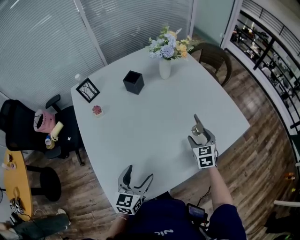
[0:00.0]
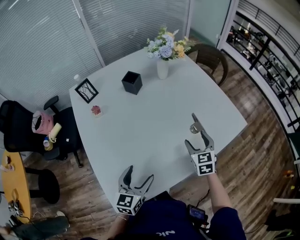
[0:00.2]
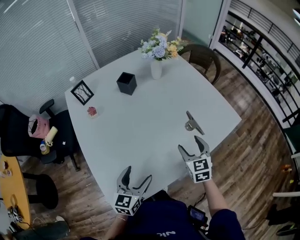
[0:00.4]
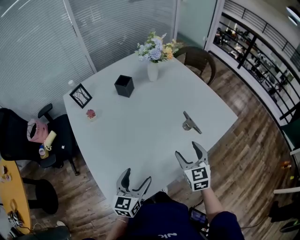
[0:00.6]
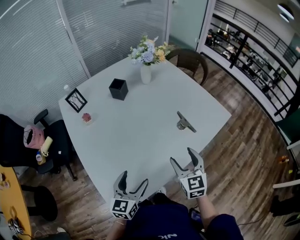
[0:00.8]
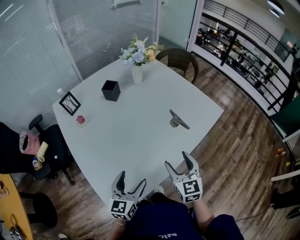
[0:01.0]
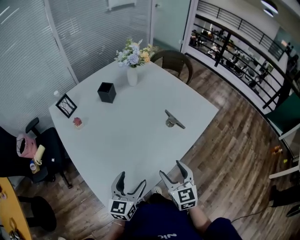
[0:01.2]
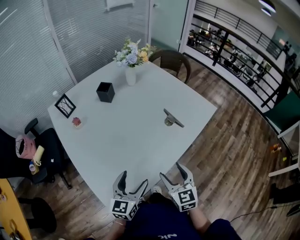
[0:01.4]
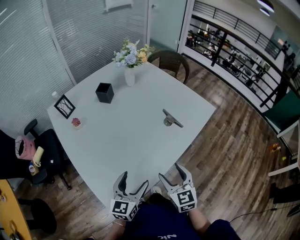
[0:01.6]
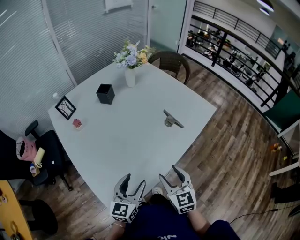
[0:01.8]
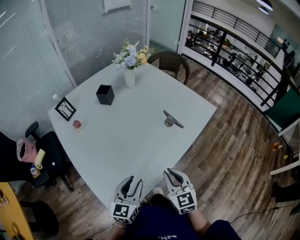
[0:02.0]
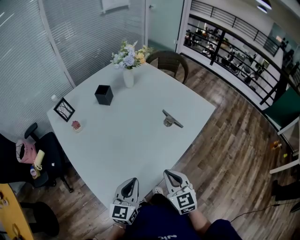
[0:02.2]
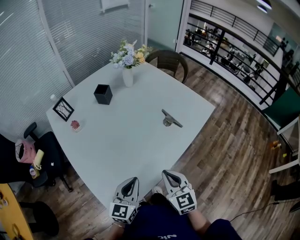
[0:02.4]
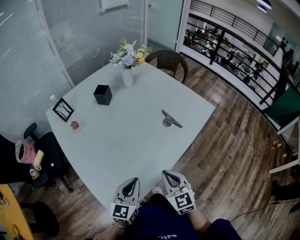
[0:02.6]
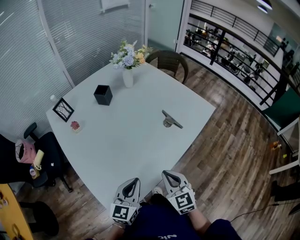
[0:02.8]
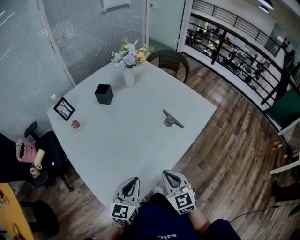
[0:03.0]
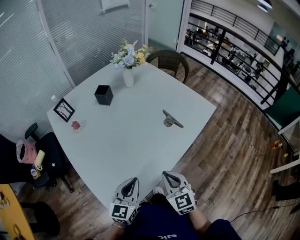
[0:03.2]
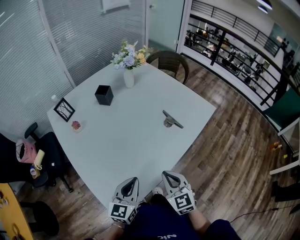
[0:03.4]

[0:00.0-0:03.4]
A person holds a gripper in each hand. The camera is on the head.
0:00.0 to 0:01.6: The left gripper heads backward, covering some 10 cm, while the right gripper moves backward, some 25 cm.
0:01.6 to 0:03.4: The right gripper closes up. Meanwhile the left gripper closes.

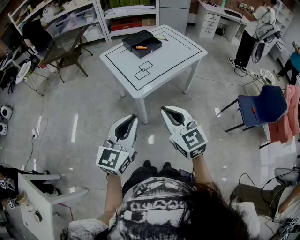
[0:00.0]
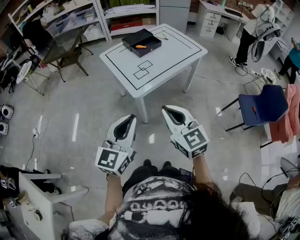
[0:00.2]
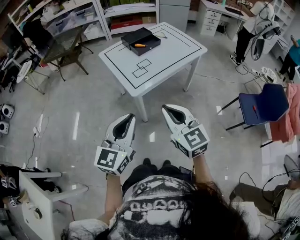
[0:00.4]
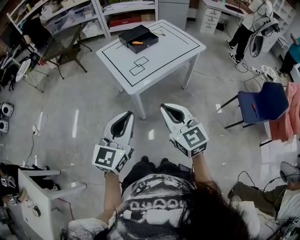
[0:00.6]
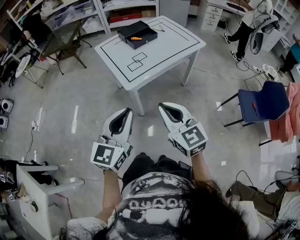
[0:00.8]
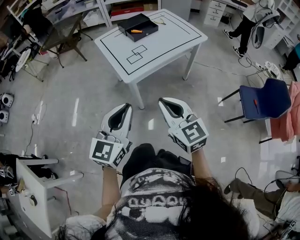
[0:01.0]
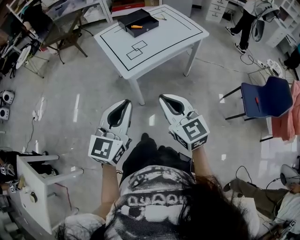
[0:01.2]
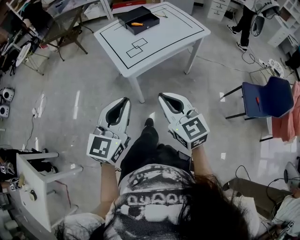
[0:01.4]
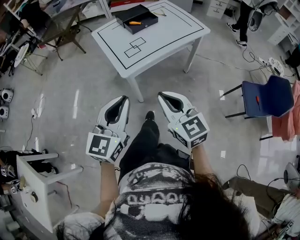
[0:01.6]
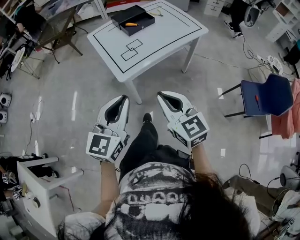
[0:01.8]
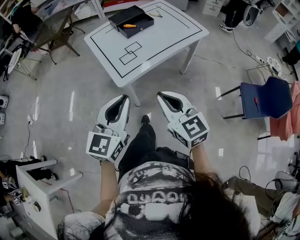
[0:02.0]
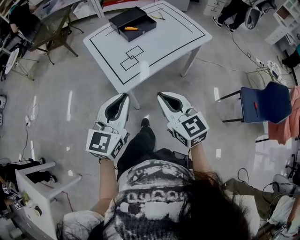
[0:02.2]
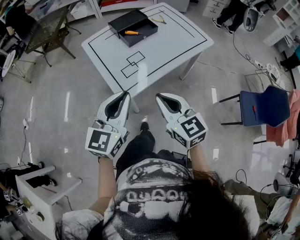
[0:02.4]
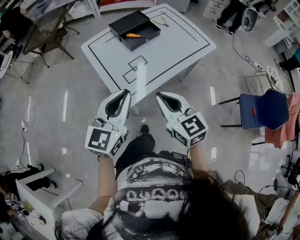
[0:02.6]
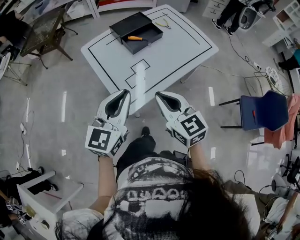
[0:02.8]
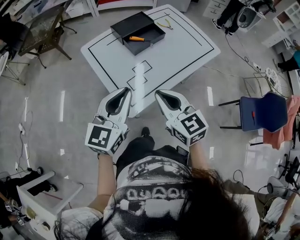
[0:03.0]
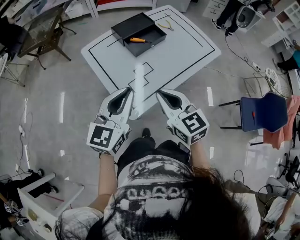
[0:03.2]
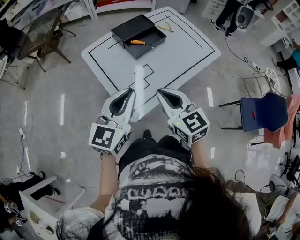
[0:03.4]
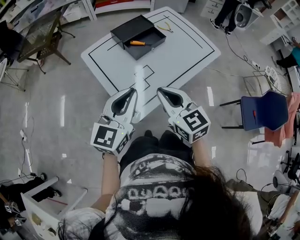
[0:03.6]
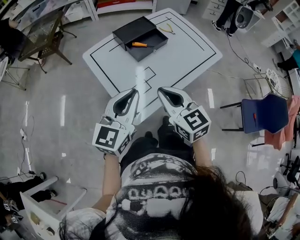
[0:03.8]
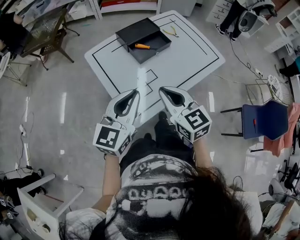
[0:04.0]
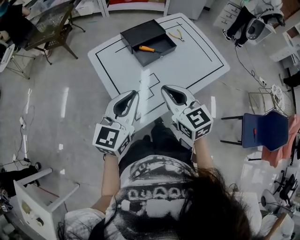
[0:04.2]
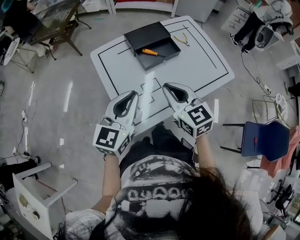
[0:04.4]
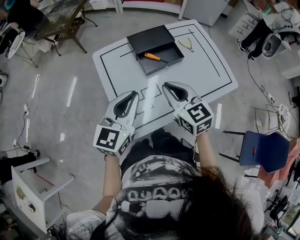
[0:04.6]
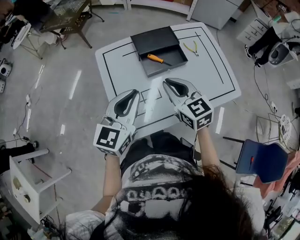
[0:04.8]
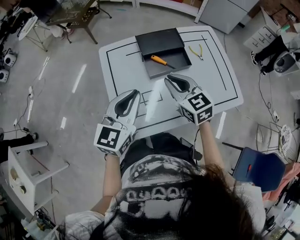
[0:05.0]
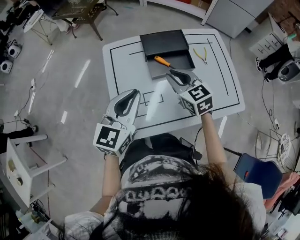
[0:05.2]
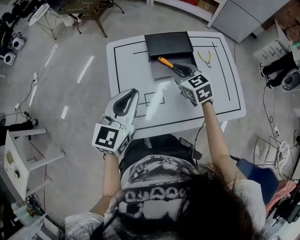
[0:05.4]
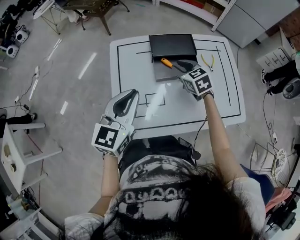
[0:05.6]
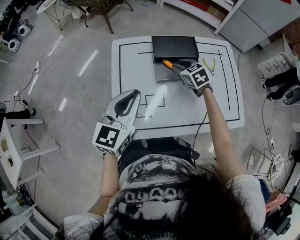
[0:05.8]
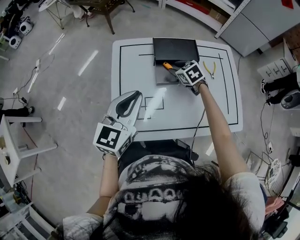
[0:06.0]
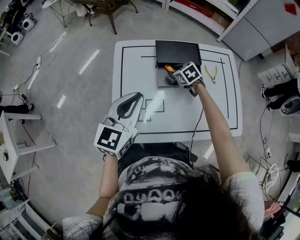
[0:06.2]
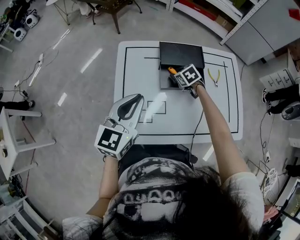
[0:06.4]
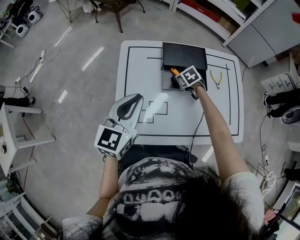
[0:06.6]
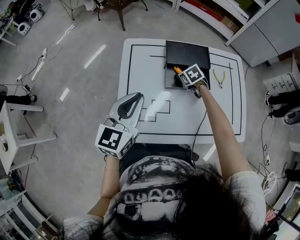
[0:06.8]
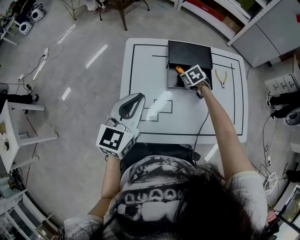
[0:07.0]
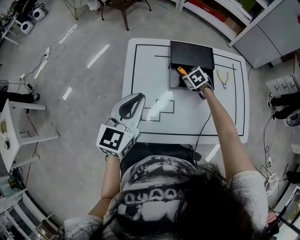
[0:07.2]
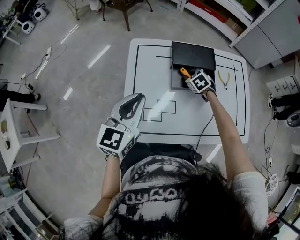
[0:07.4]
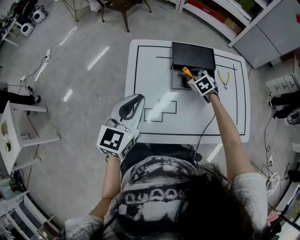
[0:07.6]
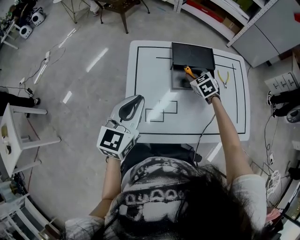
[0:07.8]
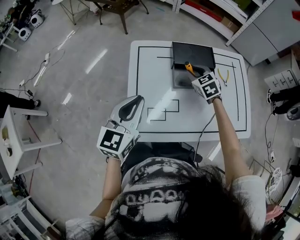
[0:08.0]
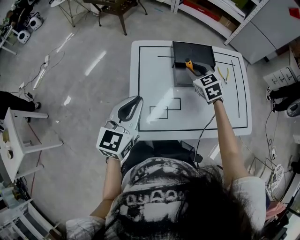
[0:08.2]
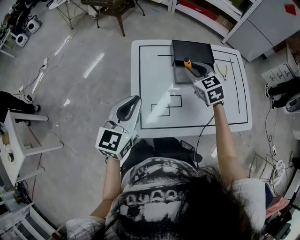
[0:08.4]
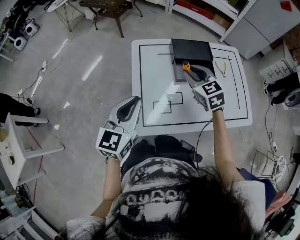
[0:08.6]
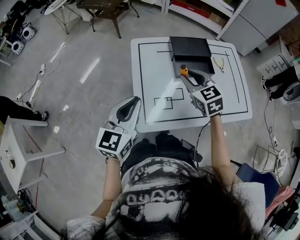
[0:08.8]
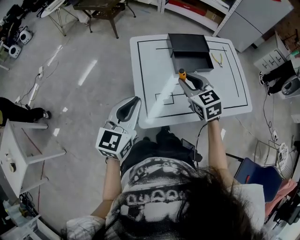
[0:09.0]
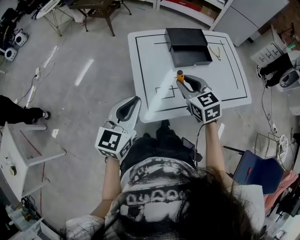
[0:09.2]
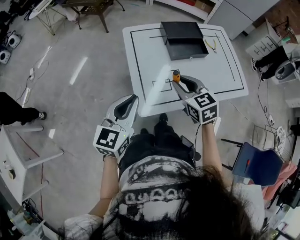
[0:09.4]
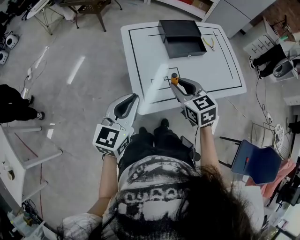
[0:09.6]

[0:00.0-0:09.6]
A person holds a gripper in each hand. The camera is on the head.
0:00.0 to 0:01.6: The left gripper travels to the right by roughly 10 cm. The right gripper goes some 10 cm to the right and downward.
0:01.6 to 0:03.2: The two grippers go about 35 cm forward.
0:03.2 to 0:04.8: The grippers both shift forward by some 20 cm.
0:04.8 to 0:06.4: The right gripper moves downward and forward, about 30 cm, tips its fingers downward by roughly 40 degrees, and opens up.
0:06.4 to 0:08.0: The left gripper is displaced to the left by approximately 5 cm. Meanwhile the right gripper goes about 10 cm upward, and turns by roughly 20 degrees.
0:08.0 to 0:09.6: The left gripper goes approximately 20 cm backward and to the left; the right gripper shifts approximately 30 cm backward and to the left, and turns by about 20 degrees.

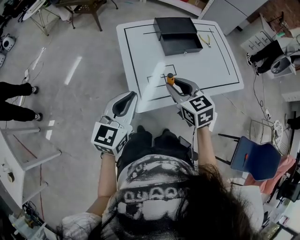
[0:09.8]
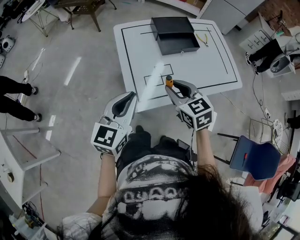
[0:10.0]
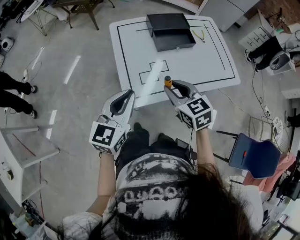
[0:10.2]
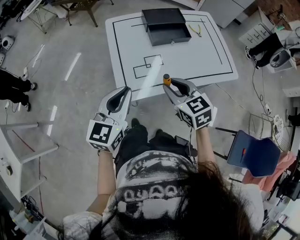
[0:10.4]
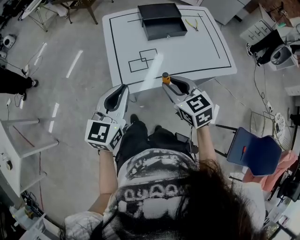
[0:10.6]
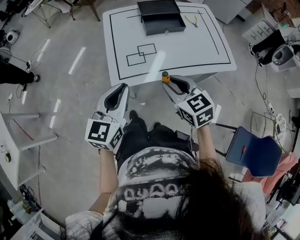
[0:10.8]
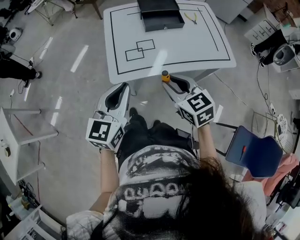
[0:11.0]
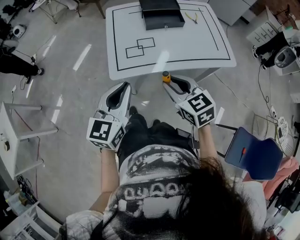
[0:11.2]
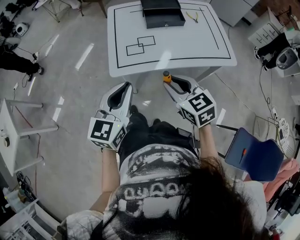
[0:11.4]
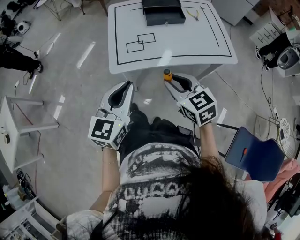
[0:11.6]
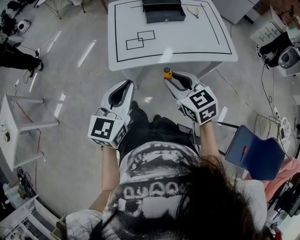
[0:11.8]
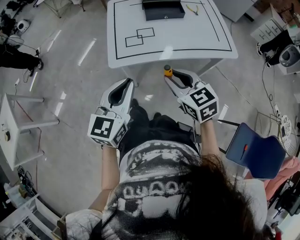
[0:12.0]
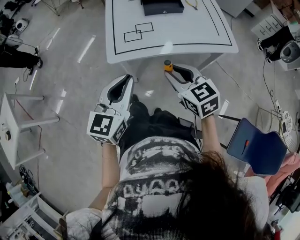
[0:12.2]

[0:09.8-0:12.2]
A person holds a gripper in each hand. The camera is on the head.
0:09.8 to 0:11.0: The grippers both shift backward and to the right by roughly 20 cm.
0:11.0 to 0:12.2: The grippers both shift backward by about 10 cm.

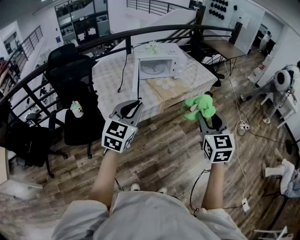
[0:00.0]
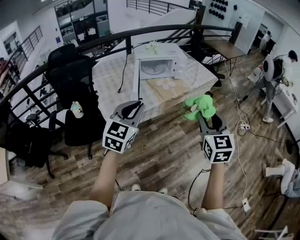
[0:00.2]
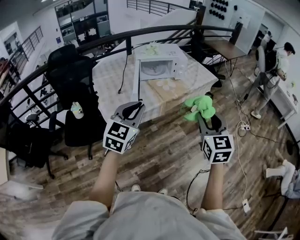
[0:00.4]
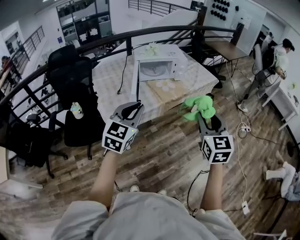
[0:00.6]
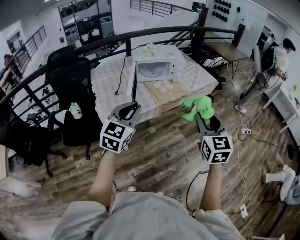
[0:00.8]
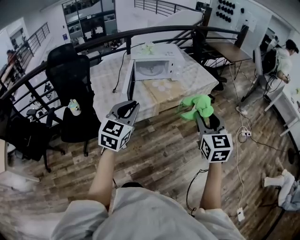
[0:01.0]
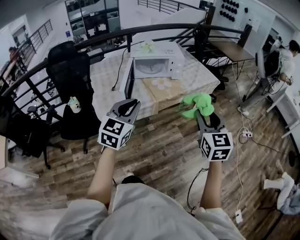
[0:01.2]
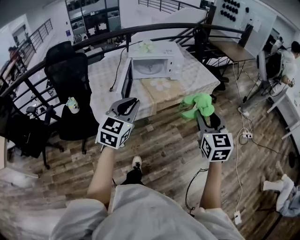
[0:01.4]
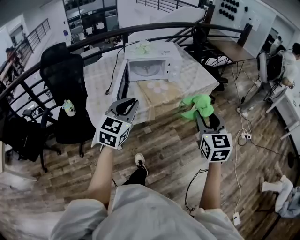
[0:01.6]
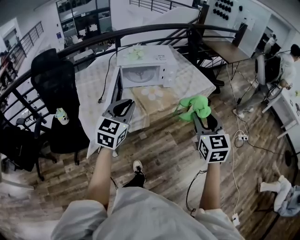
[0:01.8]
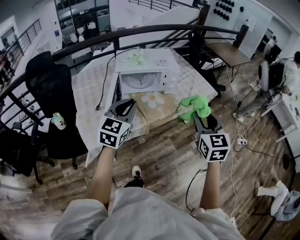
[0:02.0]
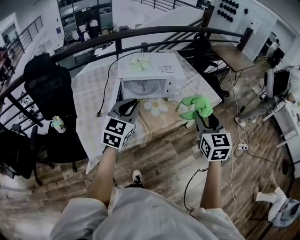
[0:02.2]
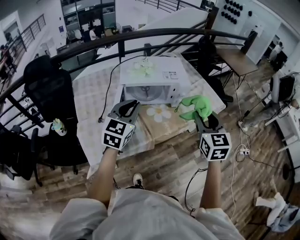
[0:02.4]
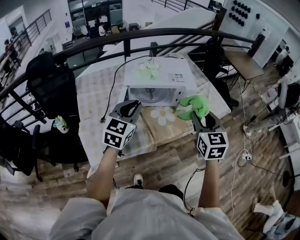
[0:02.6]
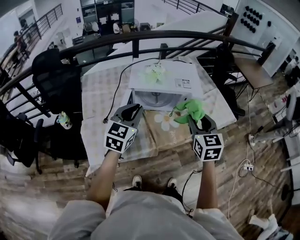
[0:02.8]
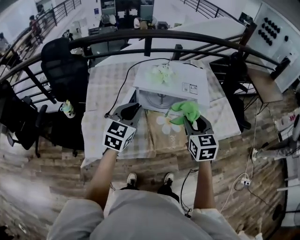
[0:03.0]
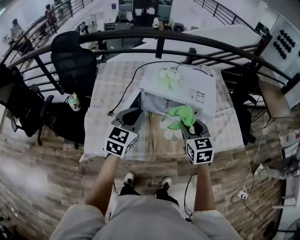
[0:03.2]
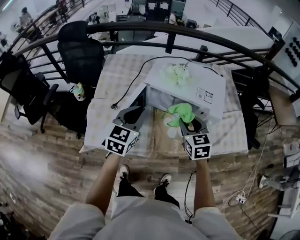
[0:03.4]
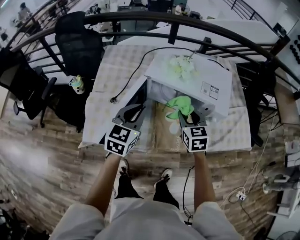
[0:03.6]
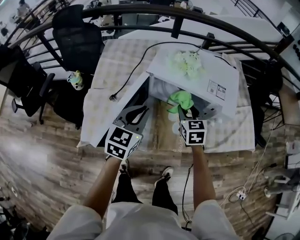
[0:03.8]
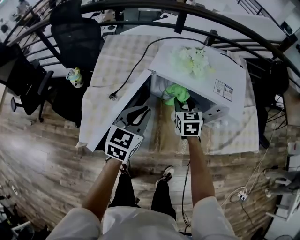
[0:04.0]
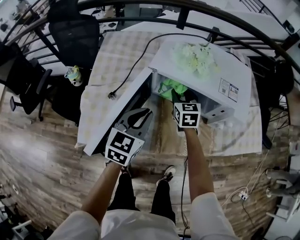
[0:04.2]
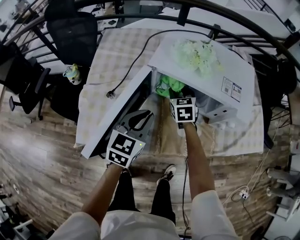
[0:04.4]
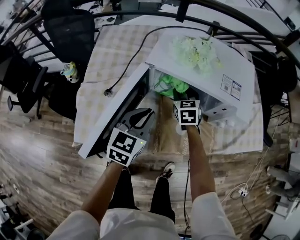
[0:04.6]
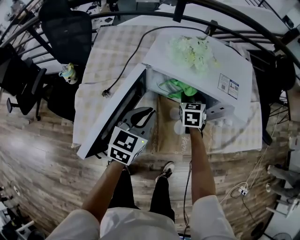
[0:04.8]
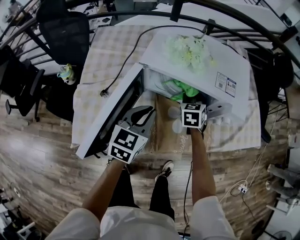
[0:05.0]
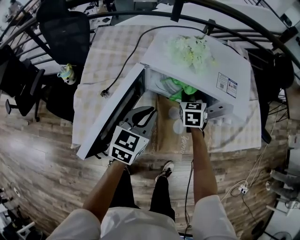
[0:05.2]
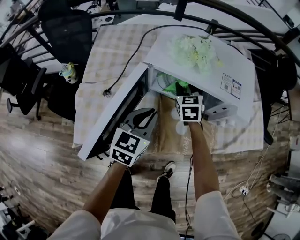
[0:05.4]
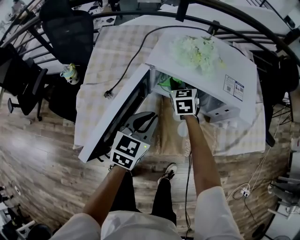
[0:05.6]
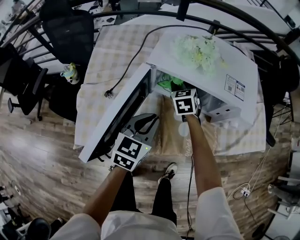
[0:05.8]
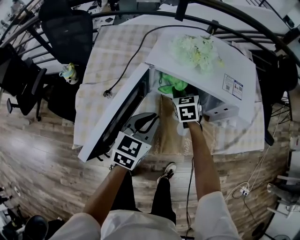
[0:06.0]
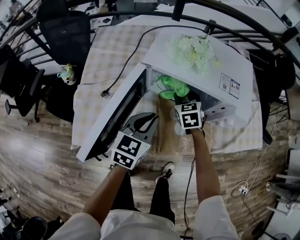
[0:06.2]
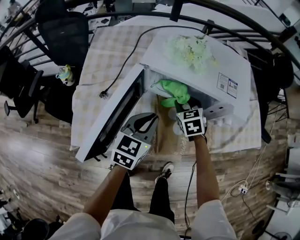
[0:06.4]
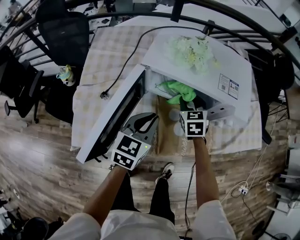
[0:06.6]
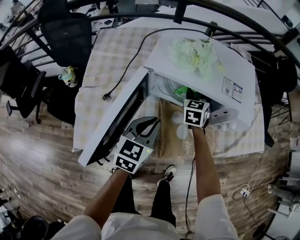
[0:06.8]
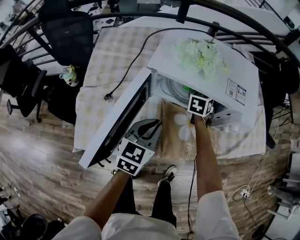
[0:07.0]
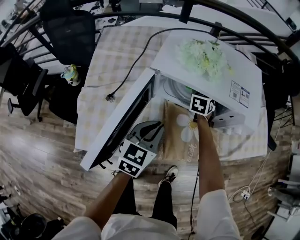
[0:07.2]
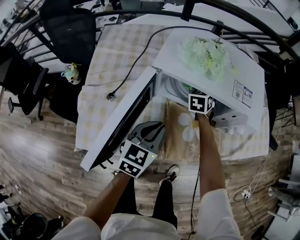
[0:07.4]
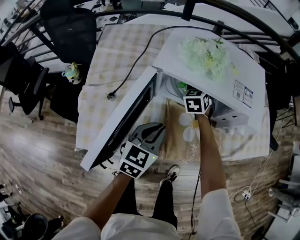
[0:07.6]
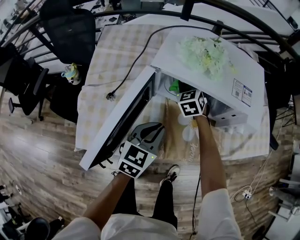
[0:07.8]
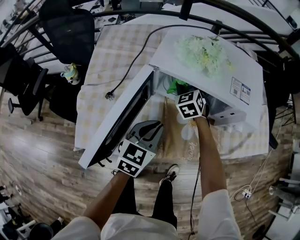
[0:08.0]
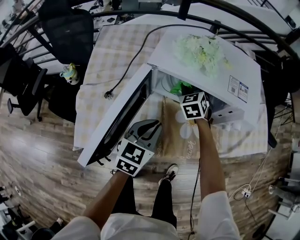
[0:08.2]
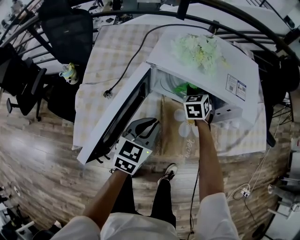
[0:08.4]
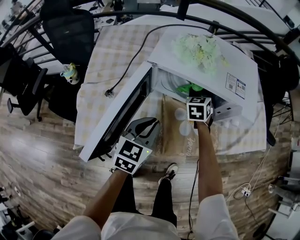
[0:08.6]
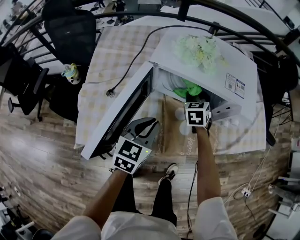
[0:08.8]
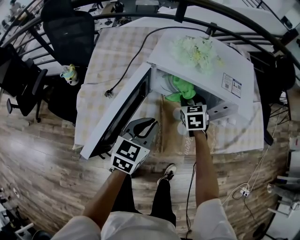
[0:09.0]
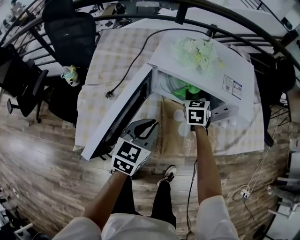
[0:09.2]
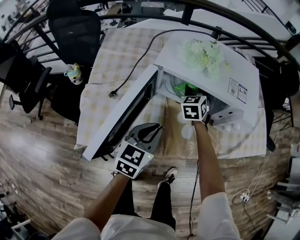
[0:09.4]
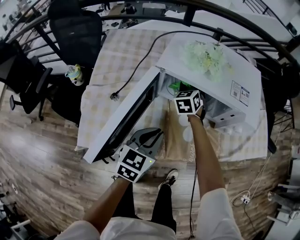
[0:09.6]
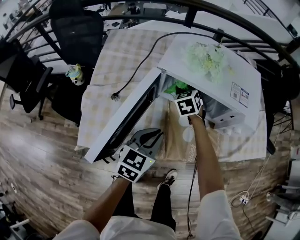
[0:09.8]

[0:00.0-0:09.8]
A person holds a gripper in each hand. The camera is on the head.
0:00.0 to 0:01.4: The two grippers go roughly 15 cm to the right and forward.
0:01.4 to 0:02.8: The two grippers go roughly 40 cm forward.
0:02.8 to 0:04.2: The right gripper shifts about 40 cm forward, downward and to the left, and turns by approximately 20 degrees. Meanwhile the left gripper goes about 15 cm downward, and rotates approximately 20 degrees.
0:04.2 to 0:05.6: The right gripper travels to the right and back again, about 10 cm each way.
0:05.6 to 0:07.0: The right gripper goes some 10 cm to the right, and rotates roughly 30 degrees.
0:07.0 to 0:08.4: The right gripper goes to the left and returns, roughly 10 cm each way, and changes its angle by about 20 degrees.
0:08.4 to 0:09.8: The right gripper heads to the left, covering some 10 cm.
